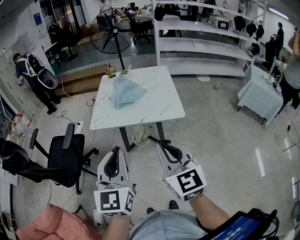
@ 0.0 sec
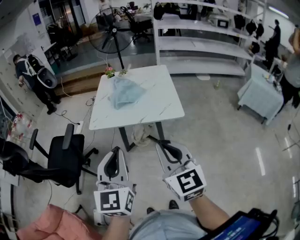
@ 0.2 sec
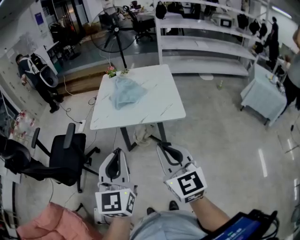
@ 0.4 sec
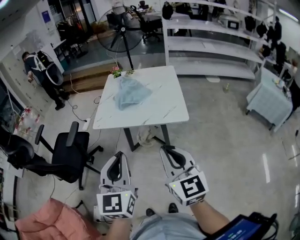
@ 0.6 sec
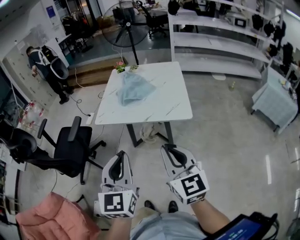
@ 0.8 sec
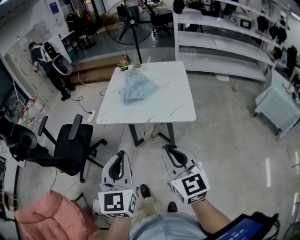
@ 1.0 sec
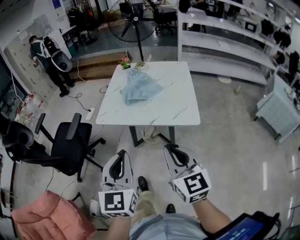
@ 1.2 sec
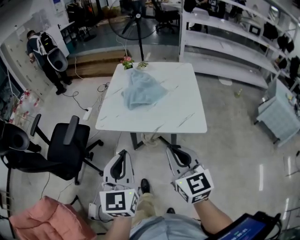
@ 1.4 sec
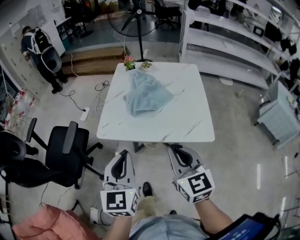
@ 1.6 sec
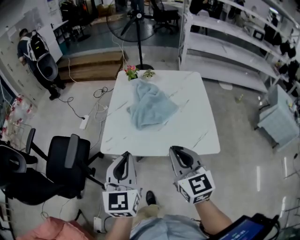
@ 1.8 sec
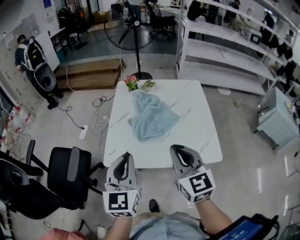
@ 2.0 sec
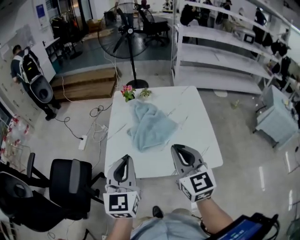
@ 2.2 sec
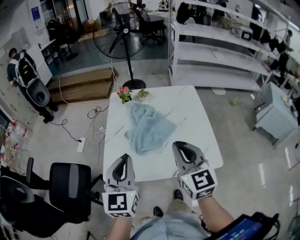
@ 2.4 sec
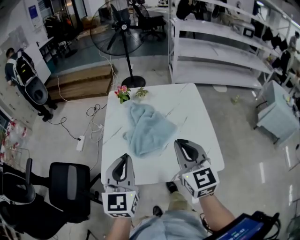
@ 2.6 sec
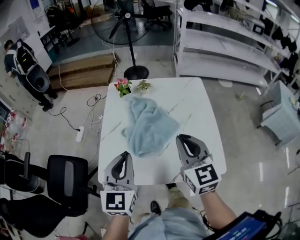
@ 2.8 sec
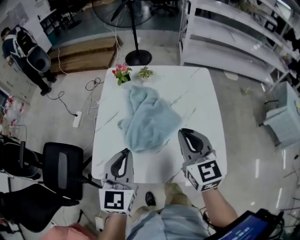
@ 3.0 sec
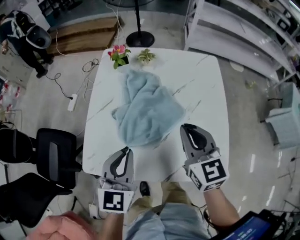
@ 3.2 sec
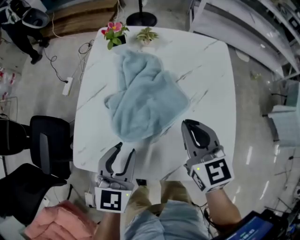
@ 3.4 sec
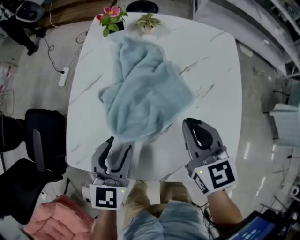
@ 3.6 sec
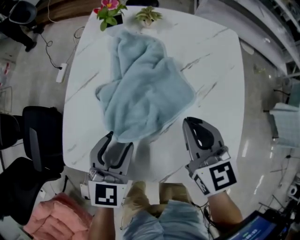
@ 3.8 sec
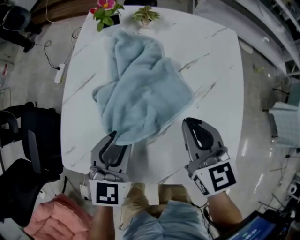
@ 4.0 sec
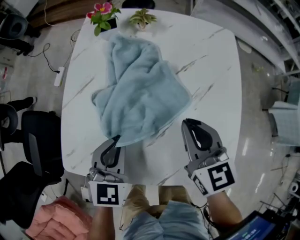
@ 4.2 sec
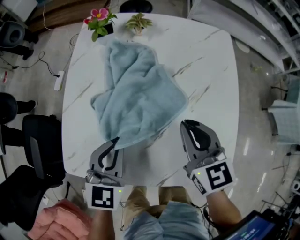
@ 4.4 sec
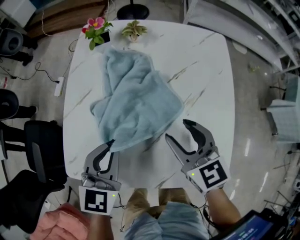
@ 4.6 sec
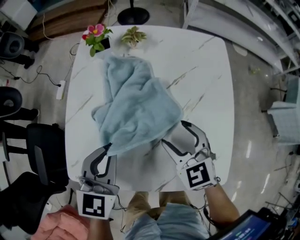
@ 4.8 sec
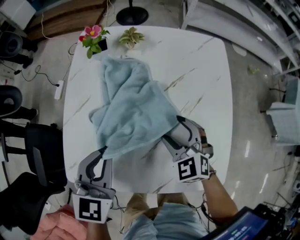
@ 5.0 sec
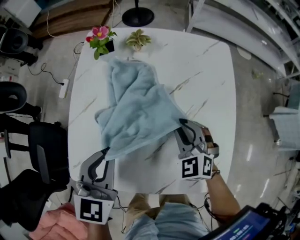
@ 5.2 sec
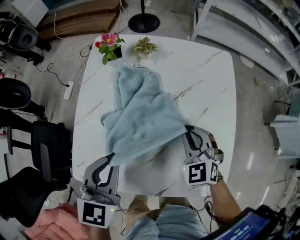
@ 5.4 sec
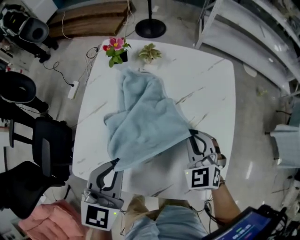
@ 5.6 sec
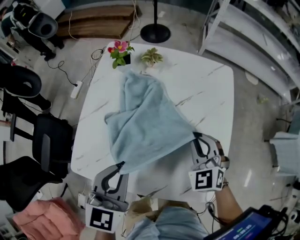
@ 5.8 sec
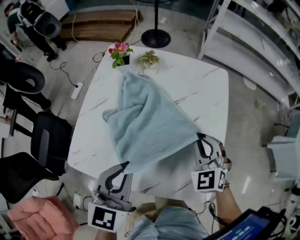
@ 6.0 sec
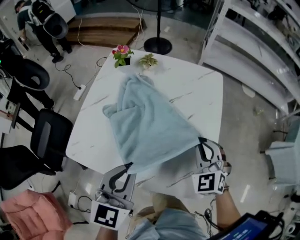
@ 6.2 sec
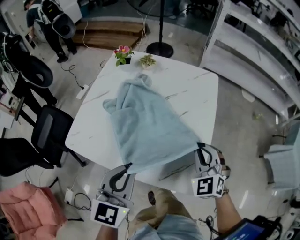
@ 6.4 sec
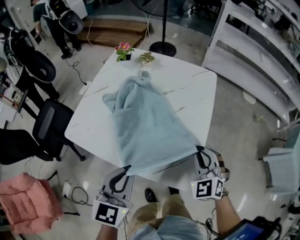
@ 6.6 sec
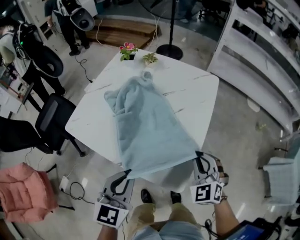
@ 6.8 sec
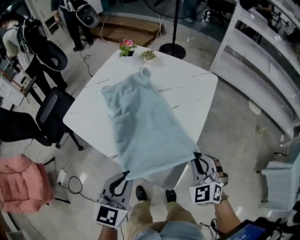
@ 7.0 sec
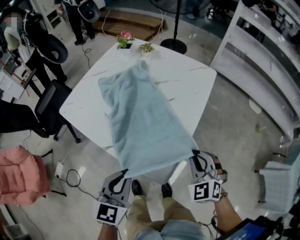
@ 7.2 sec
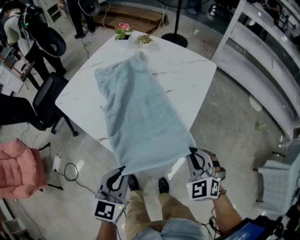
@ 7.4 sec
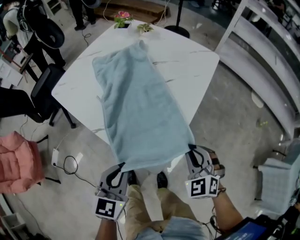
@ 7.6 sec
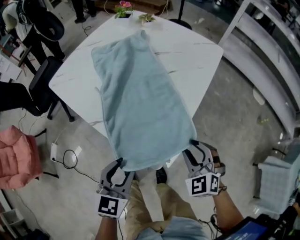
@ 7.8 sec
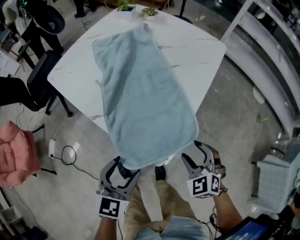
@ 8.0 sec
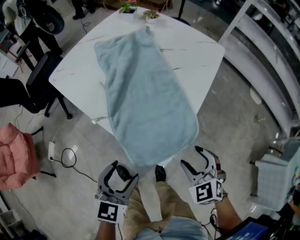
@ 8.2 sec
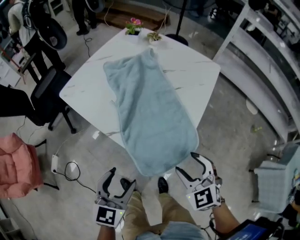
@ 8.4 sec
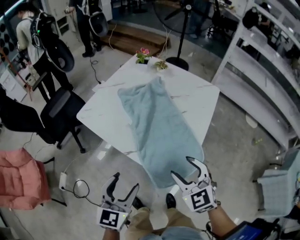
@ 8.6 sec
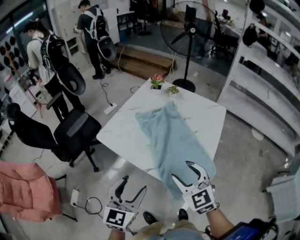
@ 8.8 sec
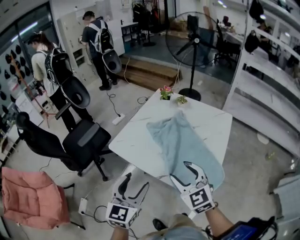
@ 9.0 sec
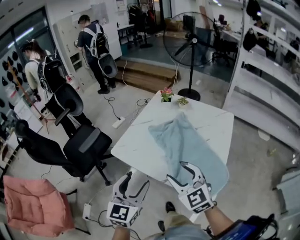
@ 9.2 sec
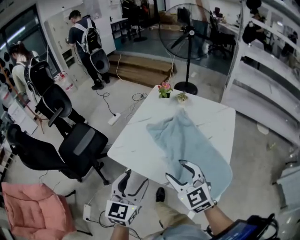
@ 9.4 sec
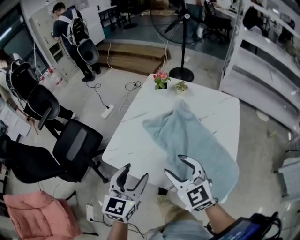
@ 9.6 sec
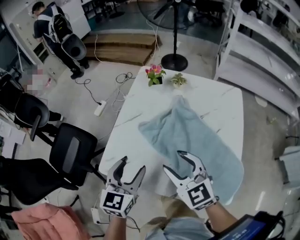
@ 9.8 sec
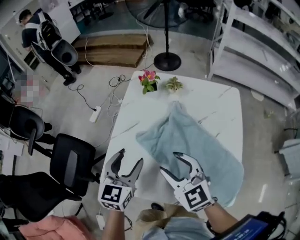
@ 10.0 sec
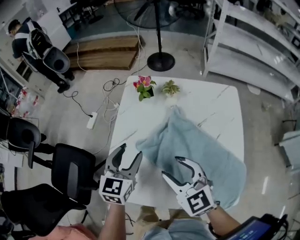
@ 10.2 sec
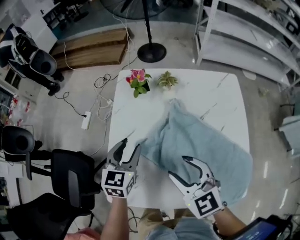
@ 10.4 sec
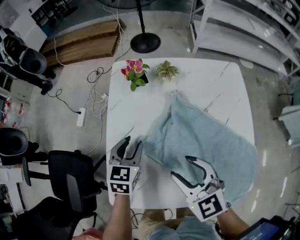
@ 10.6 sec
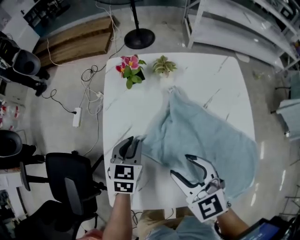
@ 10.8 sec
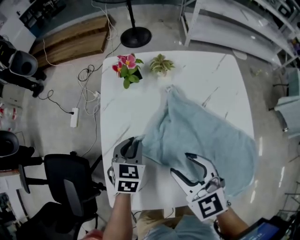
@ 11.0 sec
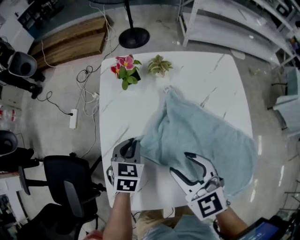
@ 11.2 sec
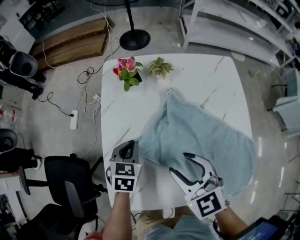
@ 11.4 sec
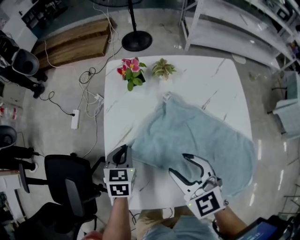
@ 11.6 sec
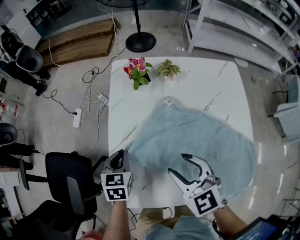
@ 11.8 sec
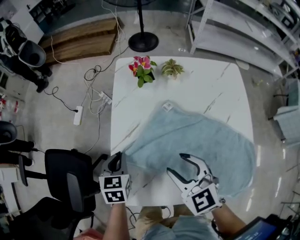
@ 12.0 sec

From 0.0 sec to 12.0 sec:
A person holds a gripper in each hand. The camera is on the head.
From 0.0 sec to 1.6 sec: The right gripper heads forward, covering approximately 20 cm, while the left gripper goes about 20 cm forward and downward.
From 1.6 sec to 3.0 sec: Both grippers move forward, roughly 25 cm.
From 3.0 sec to 4.4 sec: Both grippers travel together downward, about 15 cm. The left gripper opens and closes again.
From 4.4 sec to 6.0 sec: The right gripper travels to the right by about 10 cm, rolls counterclockwise, seen from behind, by approximately 40 degrees, and opens and closes again. The left gripper goes some 10 cm upward and to the right.
From 6.0 sec to 7.6 sec: Both grippers move backward, to the right and downward, about 30 cm. The left gripper turns by about 20 degrees; the right gripper changes its angle by about 20 degrees.
From 7.6 sec to 9.0 sec: The grippers both shift to the left and upward by roughly 30 cm. The left gripper opens its fingers; the right gripper changes its angle by roughly 30 degrees, and opens.
From 9.0 sec to 10.4 sec: The left gripper shifts approximately 40 cm forward, and rotates approximately 30 degrees. The right gripper goes some 25 cm forward, and changes its angle by roughly 20 degrees.
From 10.4 sec to 12.0 sec: The right gripper heads to the left, covering some 5 cm. The left gripper shifts approximately 15 cm to the left and downward, swivels about 20 degrees, and closes up.

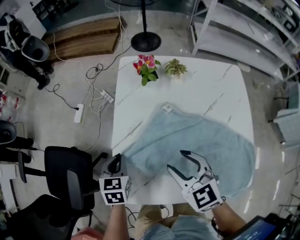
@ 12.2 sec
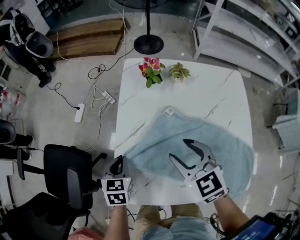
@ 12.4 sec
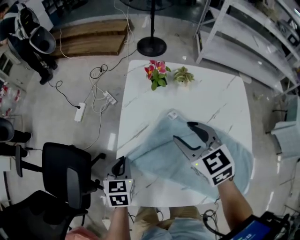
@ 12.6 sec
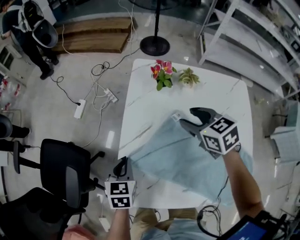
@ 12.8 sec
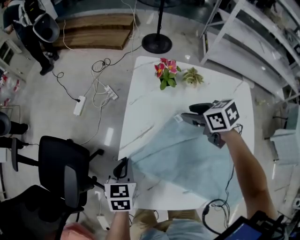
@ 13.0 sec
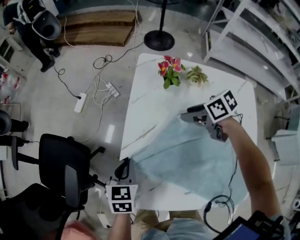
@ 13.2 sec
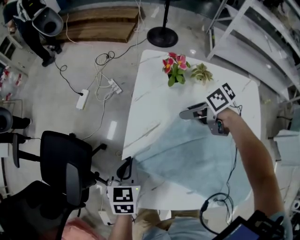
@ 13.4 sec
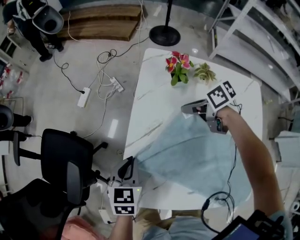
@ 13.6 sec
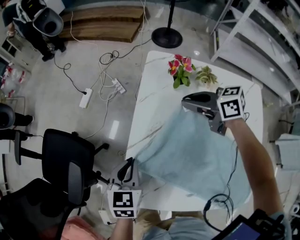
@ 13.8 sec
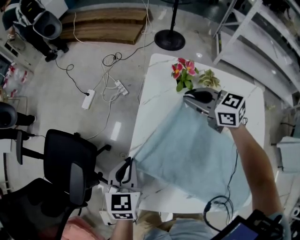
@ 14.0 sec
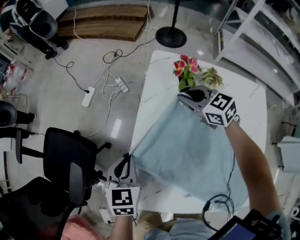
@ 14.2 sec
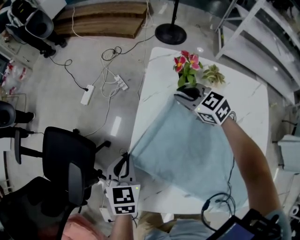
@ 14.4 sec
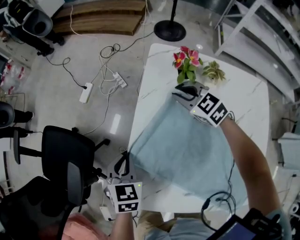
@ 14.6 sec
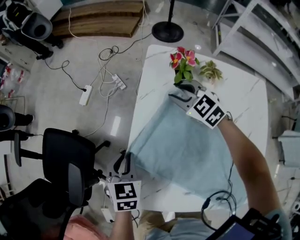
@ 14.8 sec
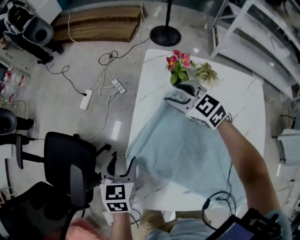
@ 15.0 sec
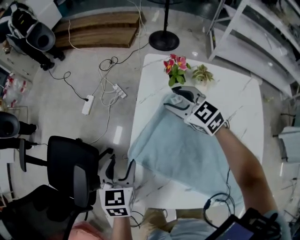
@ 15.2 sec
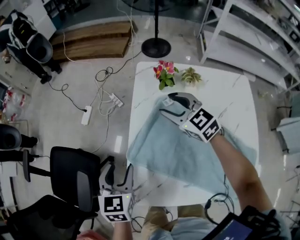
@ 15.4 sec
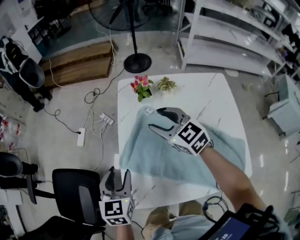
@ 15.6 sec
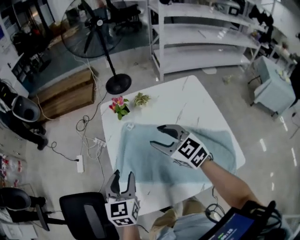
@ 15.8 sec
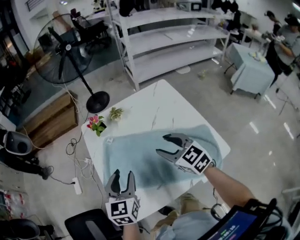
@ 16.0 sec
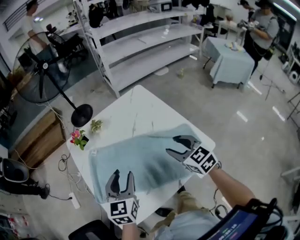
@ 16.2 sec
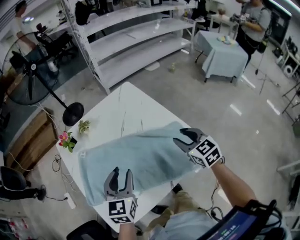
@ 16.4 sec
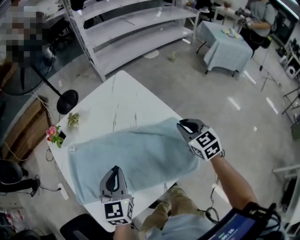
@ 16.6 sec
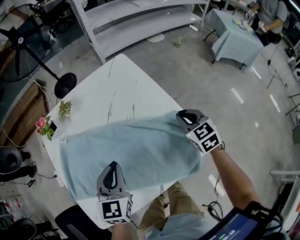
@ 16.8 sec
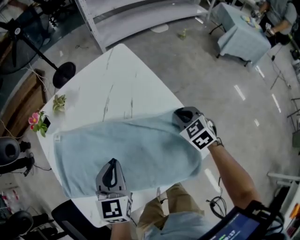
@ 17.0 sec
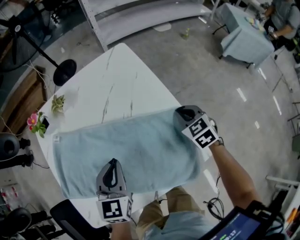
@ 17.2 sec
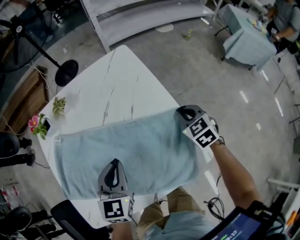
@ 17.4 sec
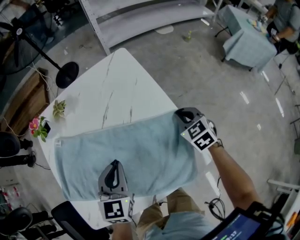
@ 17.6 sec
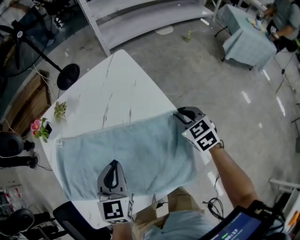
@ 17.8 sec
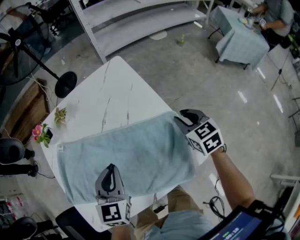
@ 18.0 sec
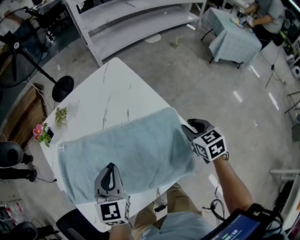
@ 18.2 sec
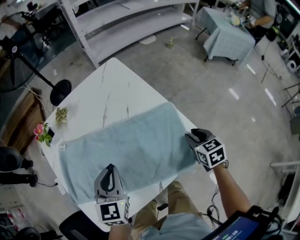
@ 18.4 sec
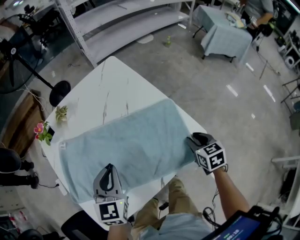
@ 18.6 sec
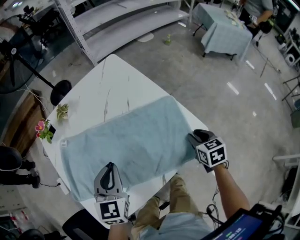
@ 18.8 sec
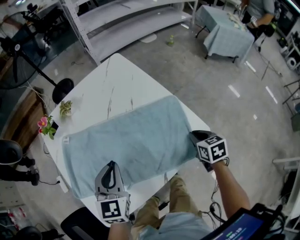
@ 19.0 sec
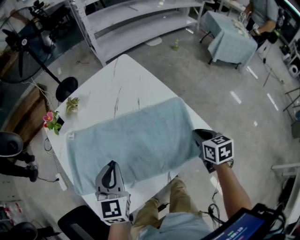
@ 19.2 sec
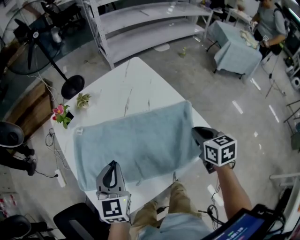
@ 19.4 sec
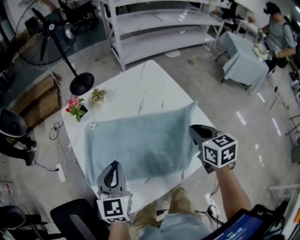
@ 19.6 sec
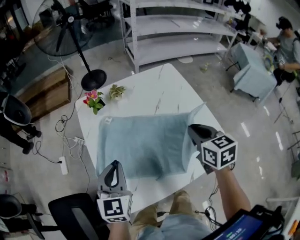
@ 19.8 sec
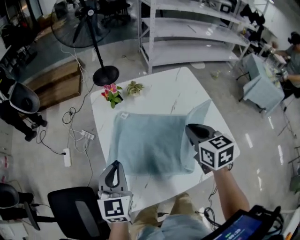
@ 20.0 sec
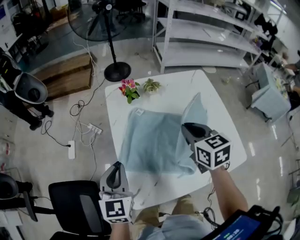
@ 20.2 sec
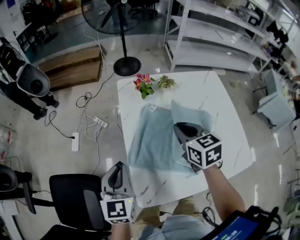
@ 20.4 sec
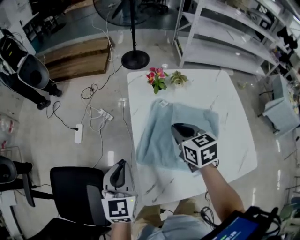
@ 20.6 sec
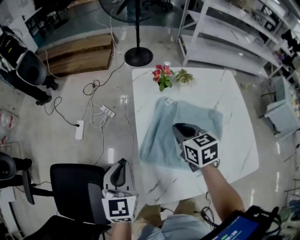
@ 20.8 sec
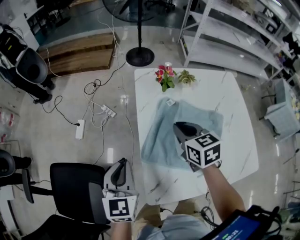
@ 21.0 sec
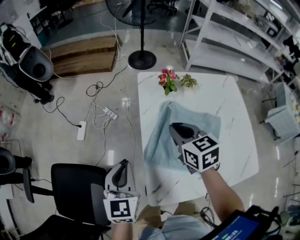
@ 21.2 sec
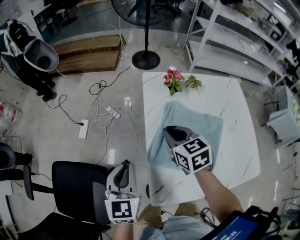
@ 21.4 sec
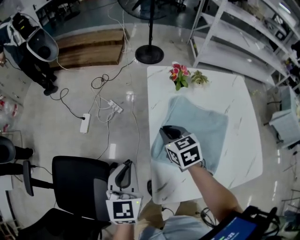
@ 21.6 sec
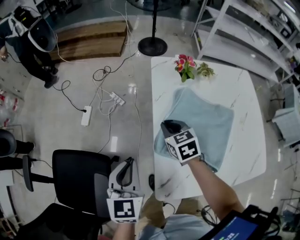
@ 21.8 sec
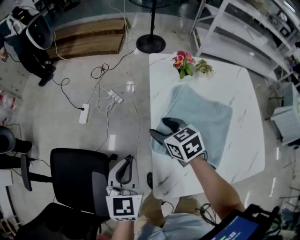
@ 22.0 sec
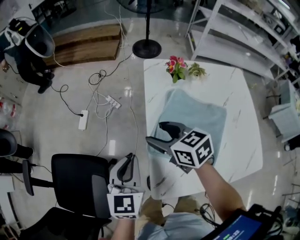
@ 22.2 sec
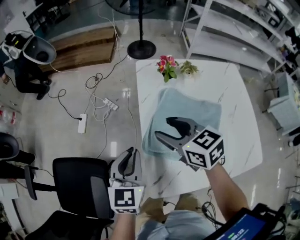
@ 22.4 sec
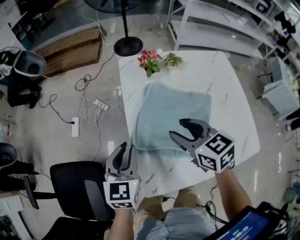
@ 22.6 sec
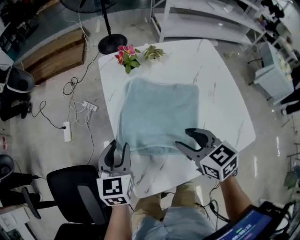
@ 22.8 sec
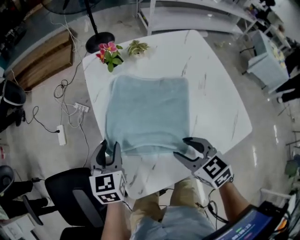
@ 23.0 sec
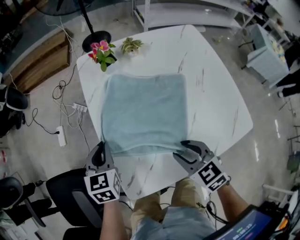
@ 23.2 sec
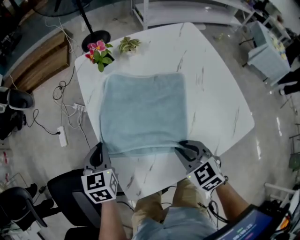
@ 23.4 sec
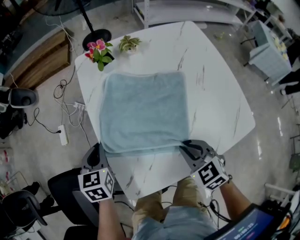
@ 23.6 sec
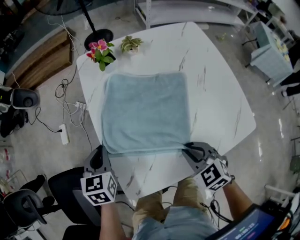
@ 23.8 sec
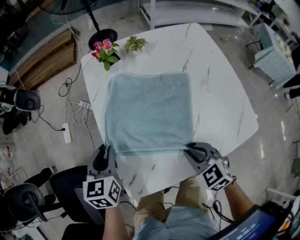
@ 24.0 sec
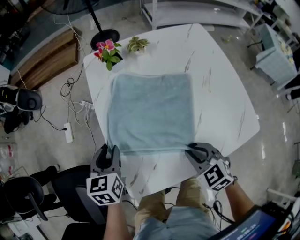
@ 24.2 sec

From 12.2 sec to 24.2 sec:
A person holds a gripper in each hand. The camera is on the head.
From 12.2 sec to 13.8 sec: The right gripper travels downward and back again, some 10 cm each way, turns by about 40 degrees, and closes.
From 13.8 sec to 15.2 sec: The right gripper travels downward and back again, roughly 5 cm each way, turns by approximately 40 degrees, and opens up, while the left gripper opens up.
From 15.2 sec to 16.6 sec: The left gripper ends up roughly 35 cm from where it was, rotates roughly 50 degrees, and closes its fingers. The right gripper goes upward and returns, roughly 10 cm each way, changes its angle by roughly 70 degrees, and closes.
From 16.6 sec to 18.2 sec: The right gripper heads downward and to the right, covering approximately 10 cm.
From 18.2 sec to 19.8 sec: The left gripper heads to the left and backward, covering about 20 cm. The right gripper shifts about 25 cm to the left and upward.
From 19.8 sec to 21.2 sec: The right gripper travels to the left by about 35 cm, and changes its angle by about 30 degrees; the left gripper heads to the left, covering some 20 cm.
From 21.2 sec to 22.6 sec: The right gripper shifts approximately 10 cm backward, travels to the left and back again, roughly 10 cm each way, and opens its fingers, while the left gripper travels to the right by about 5 cm.
From 22.6 sec to 24.2 sec: The right gripper shifts roughly 20 cm backward, downward and to the right, swivels roughly 20 degrees, and closes up. The left gripper is displaced downward by some 5 cm.
